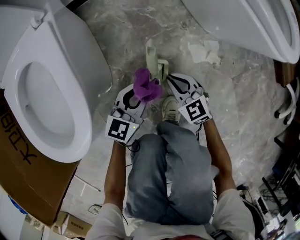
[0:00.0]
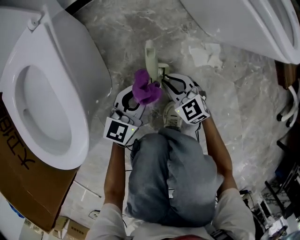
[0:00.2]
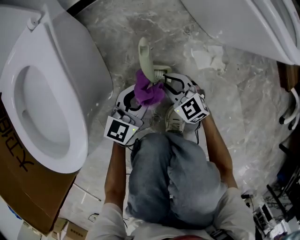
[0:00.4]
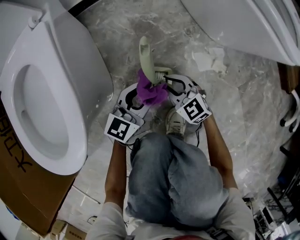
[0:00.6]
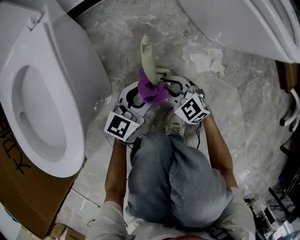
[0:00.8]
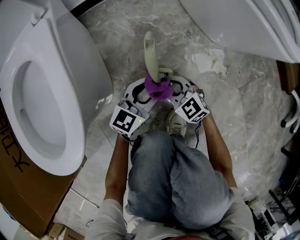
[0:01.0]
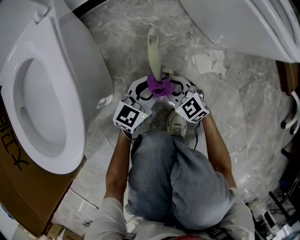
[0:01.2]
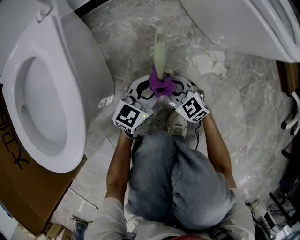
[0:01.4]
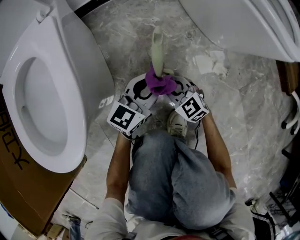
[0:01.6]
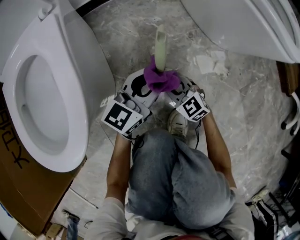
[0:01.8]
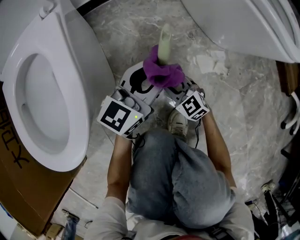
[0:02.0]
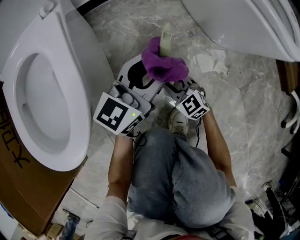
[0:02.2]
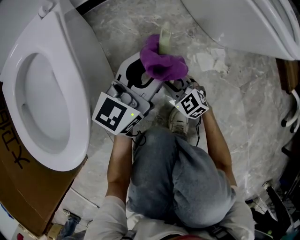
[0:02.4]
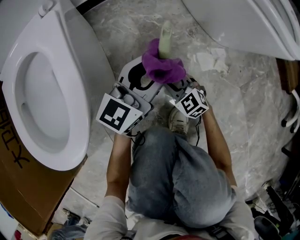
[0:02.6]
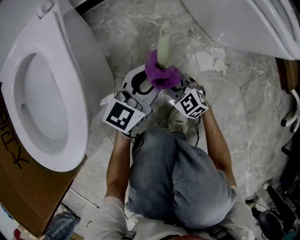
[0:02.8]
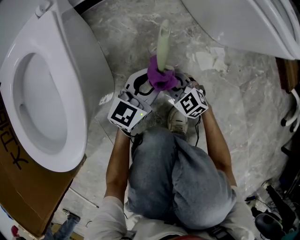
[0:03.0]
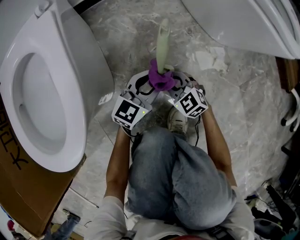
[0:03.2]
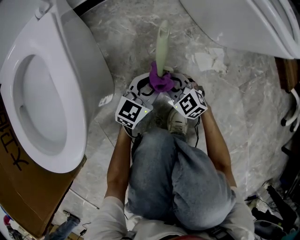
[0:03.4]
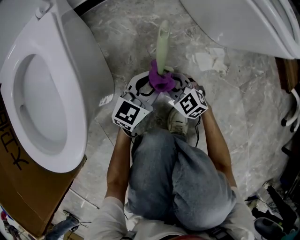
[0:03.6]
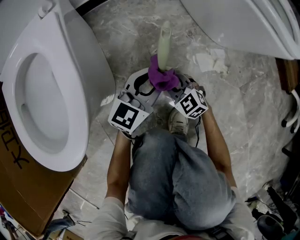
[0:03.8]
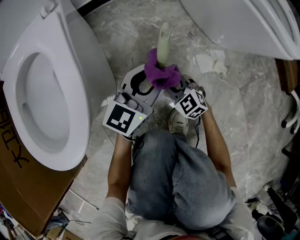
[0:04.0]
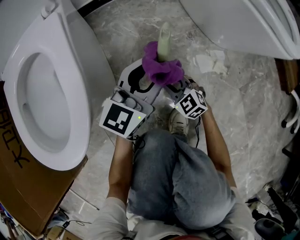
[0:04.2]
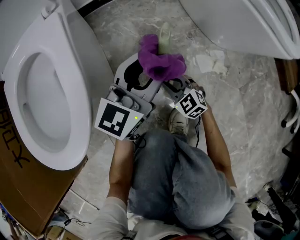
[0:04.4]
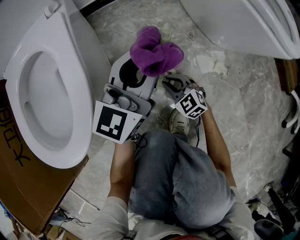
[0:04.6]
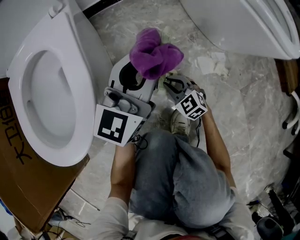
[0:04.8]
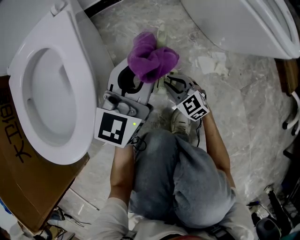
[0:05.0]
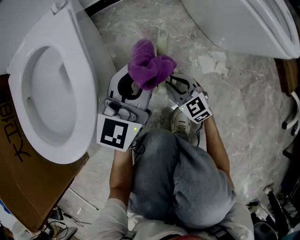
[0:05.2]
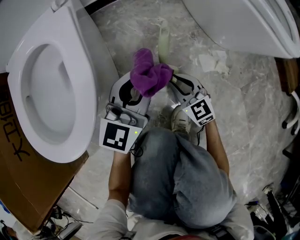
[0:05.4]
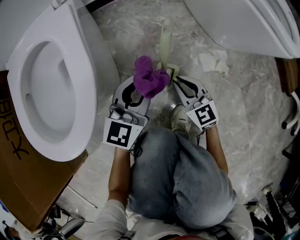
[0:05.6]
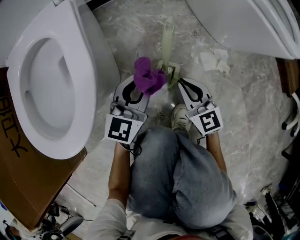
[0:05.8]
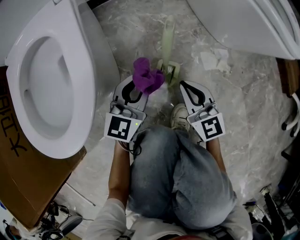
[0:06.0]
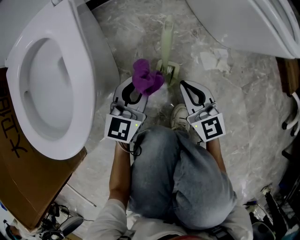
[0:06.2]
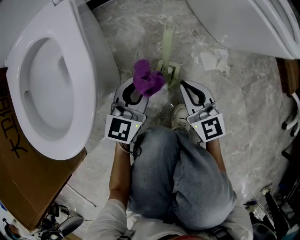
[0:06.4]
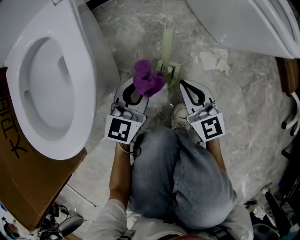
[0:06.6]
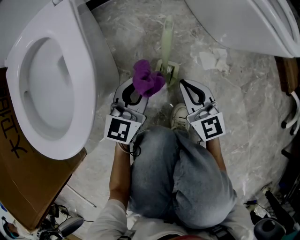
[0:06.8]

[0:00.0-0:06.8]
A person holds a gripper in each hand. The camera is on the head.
0:00.0 to 0:01.4: Both grippers travel together downward, roughly 5 cm.
0:01.4 to 0:02.8: The left gripper heads upward, covering some 10 cm.
0:02.8 to 0:04.0: The left gripper goes downward and returns, approximately 10 cm each way.
0:04.0 to 0:05.4: The left gripper travels to the left by about 5 cm; the right gripper goes roughly 5 cm upward.
0:05.4 to 0:06.8: The left gripper shifts approximately 5 cm downward. Meanwhile the right gripper is displaced upward by approximately 10 cm.

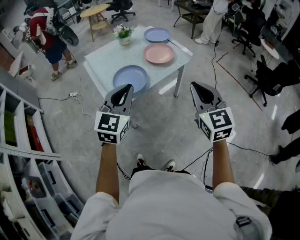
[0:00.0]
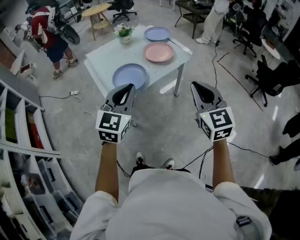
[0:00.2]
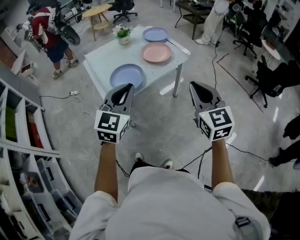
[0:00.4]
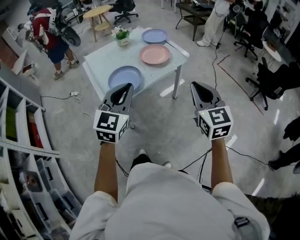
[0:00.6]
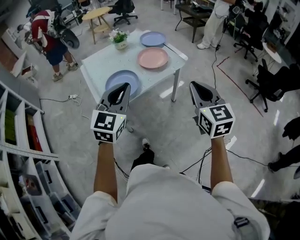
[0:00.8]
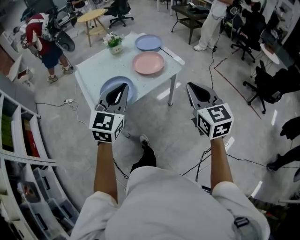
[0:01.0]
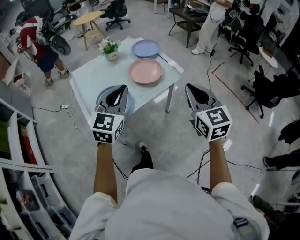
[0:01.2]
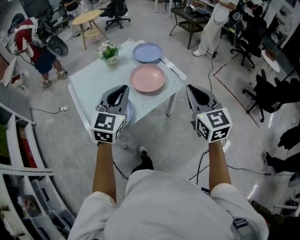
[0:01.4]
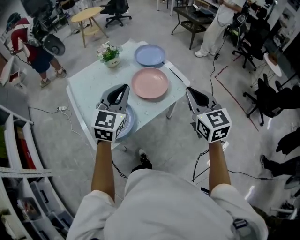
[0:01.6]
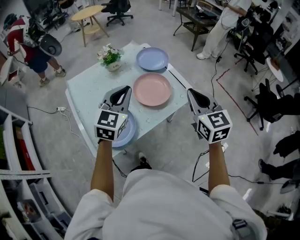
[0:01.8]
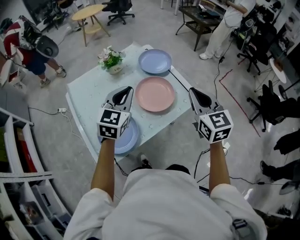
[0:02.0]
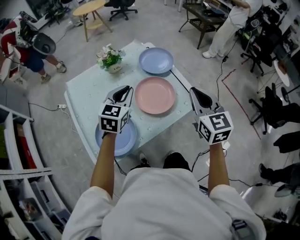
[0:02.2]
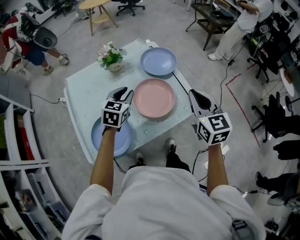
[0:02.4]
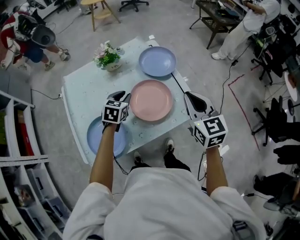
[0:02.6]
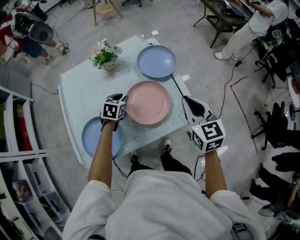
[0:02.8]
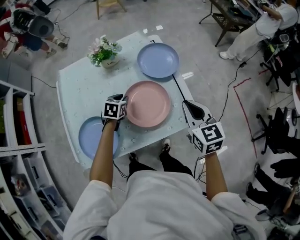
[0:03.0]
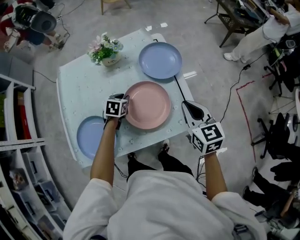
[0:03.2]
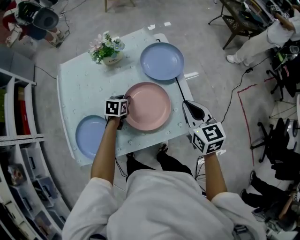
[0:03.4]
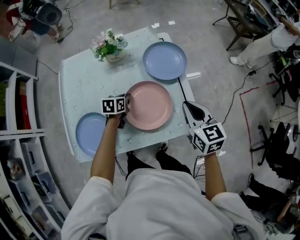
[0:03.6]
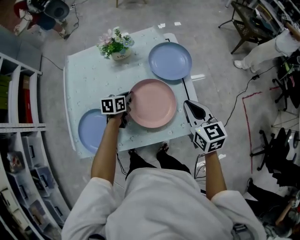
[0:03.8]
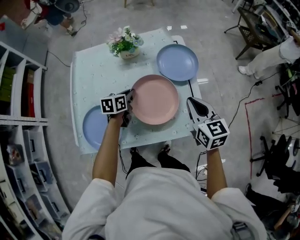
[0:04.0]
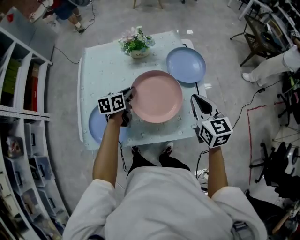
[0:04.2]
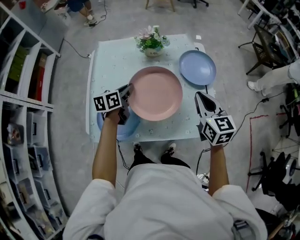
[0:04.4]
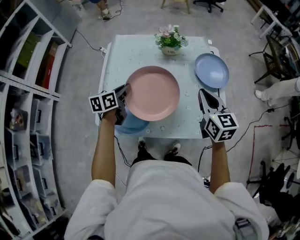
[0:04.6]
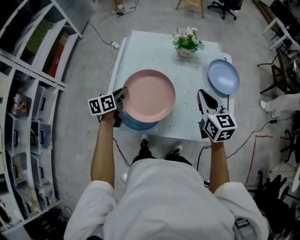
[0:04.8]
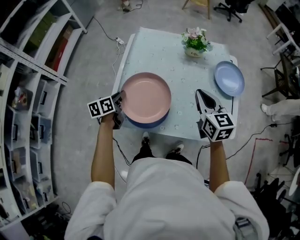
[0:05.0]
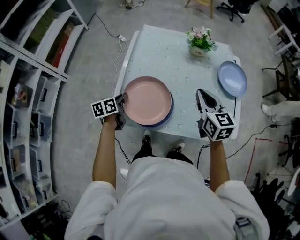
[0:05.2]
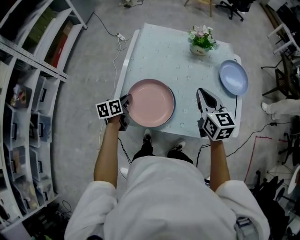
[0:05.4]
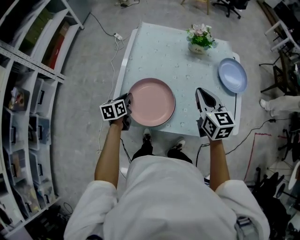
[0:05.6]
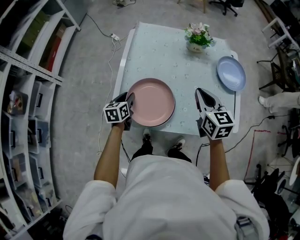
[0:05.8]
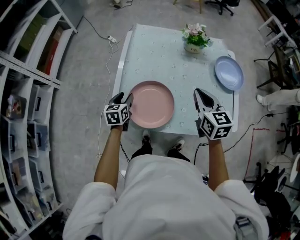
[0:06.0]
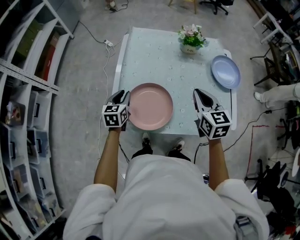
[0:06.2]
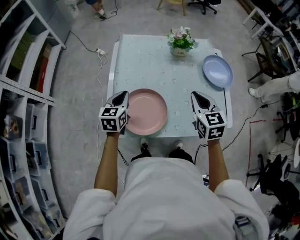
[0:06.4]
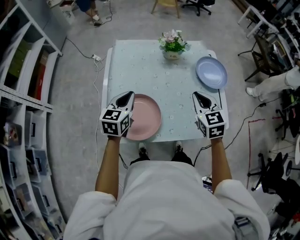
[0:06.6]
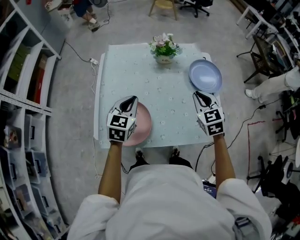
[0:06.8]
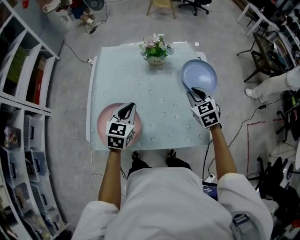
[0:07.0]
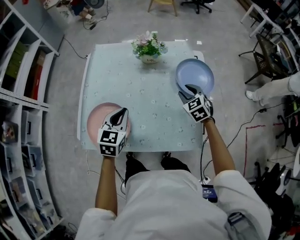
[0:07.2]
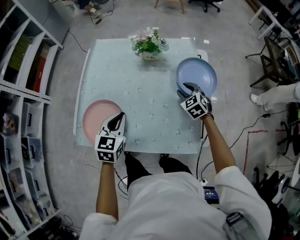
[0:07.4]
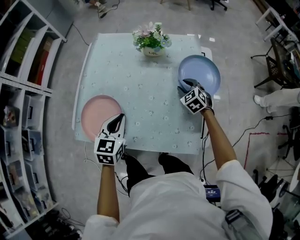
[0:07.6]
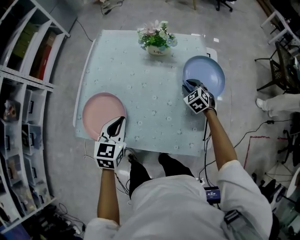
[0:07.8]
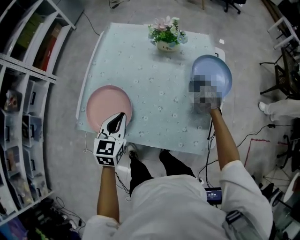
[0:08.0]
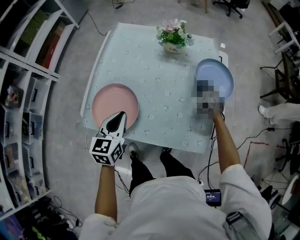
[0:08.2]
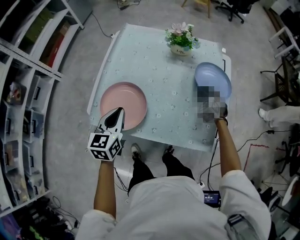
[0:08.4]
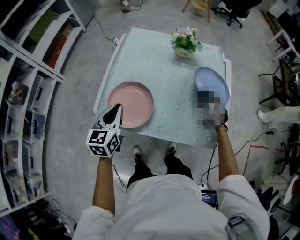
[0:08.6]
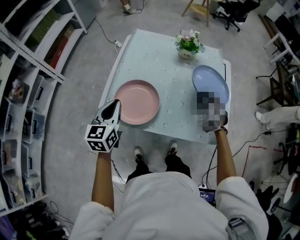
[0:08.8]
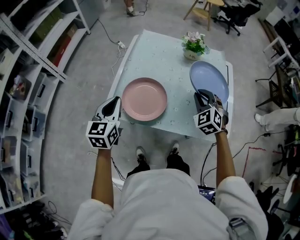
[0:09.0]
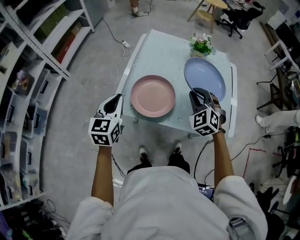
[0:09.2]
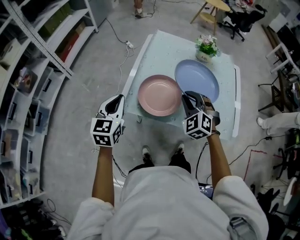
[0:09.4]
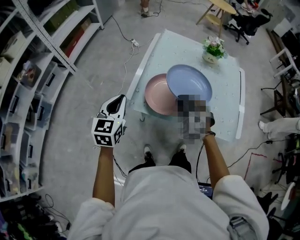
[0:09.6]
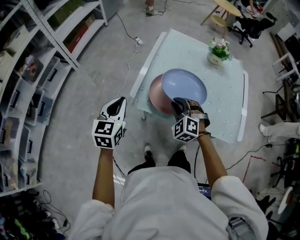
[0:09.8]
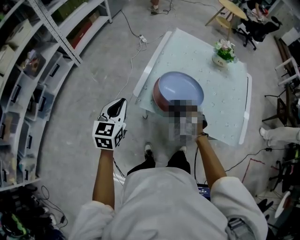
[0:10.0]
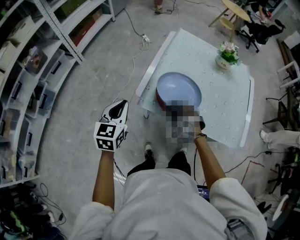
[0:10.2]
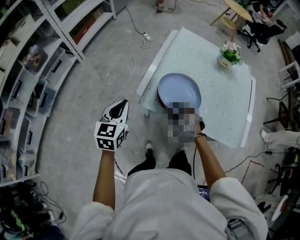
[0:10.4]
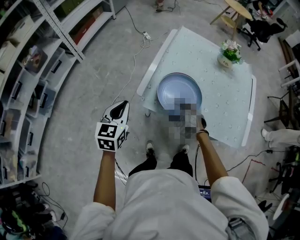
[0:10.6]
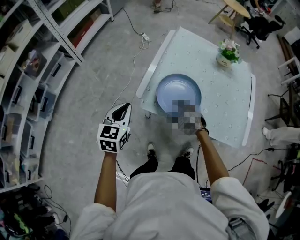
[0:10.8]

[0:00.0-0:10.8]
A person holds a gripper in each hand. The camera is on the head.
0:00.0 to 0:01.6: The grippers both shift forward by some 30 cm.
0:01.6 to 0:03.0: The left gripper goes roughly 40 cm downward and forward, tilts its fingers approximately 40 degrees downward, and opens its fingers. Meanwhile the right gripper goes some 30 cm forward and downward, and changes its angle by roughly 20 degrees.
0:03.0 to 0:04.6: The right gripper travels to the left by about 15 cm, while the left gripper heads to the left, upward and backward, covering approximately 25 cm, and turns by some 50 degrees.
0:04.6 to 0:06.2: The grippers both shift to the left by roughly 15 cm. The left gripper rotates roughly 30 degrees, and opens.
0:06.2 to 0:07.8: The right gripper shifts roughly 35 cm to the right, downward and forward, changes its angle by roughly 40 degrees, and opens its fingers. Meanwhile the left gripper moves to the right, about 25 cm, and closes up.
0:07.8 to 0:09.2: The right gripper goes roughly 40 cm to the left, upward and backward, and swivels approximately 30 degrees, while the left gripper travels to the left by about 25 cm.
0:09.2 to 0:10.8: The left gripper goes some 10 cm to the left and downward, while the right gripper goes about 25 cm to the left and downward, swivels about 40 degrees, and opens its fingers.

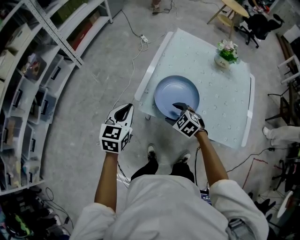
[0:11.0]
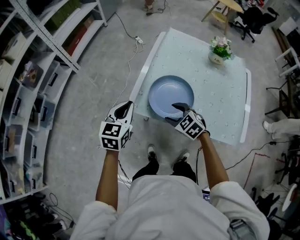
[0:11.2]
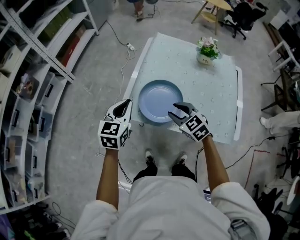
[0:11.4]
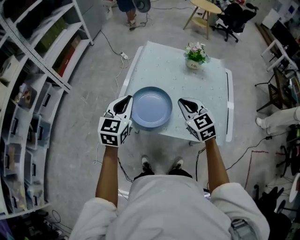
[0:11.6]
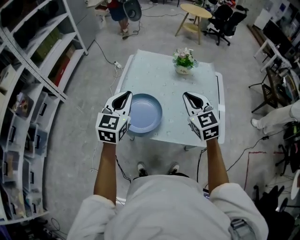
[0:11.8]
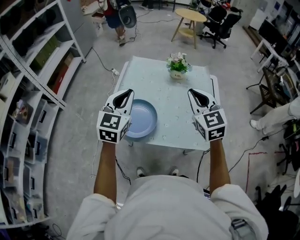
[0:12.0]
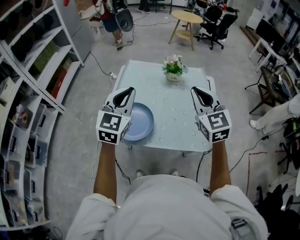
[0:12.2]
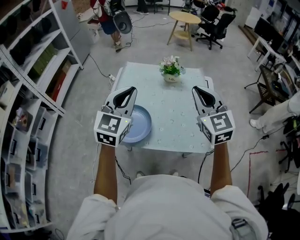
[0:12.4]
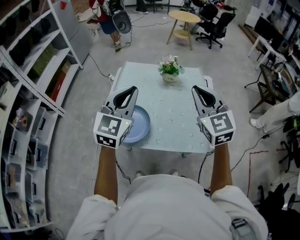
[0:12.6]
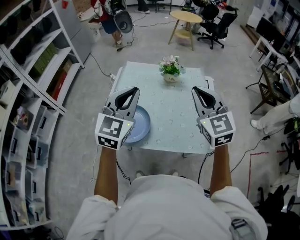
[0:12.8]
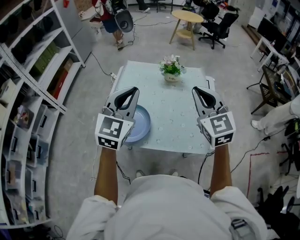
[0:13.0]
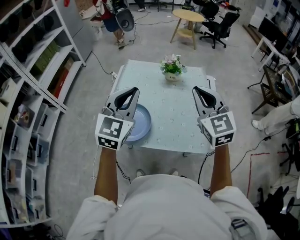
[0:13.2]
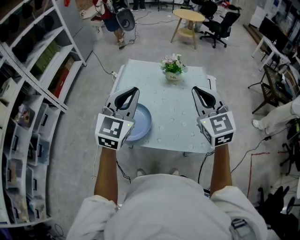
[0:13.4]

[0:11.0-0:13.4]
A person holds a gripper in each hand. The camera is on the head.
0:11.0 to 0:12.2: The left gripper moves approximately 35 cm, and swivels some 30 degrees, while the right gripper moves upward, some 35 cm, tips its fingers upward by approximately 40 degrees, and closes.
0:12.2 to 0:13.4: The left gripper ends up approximately 5 cm from where it was.

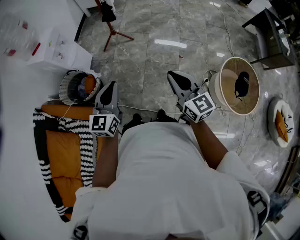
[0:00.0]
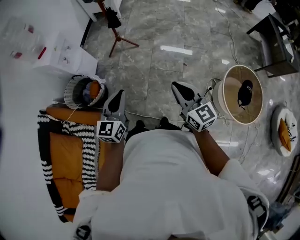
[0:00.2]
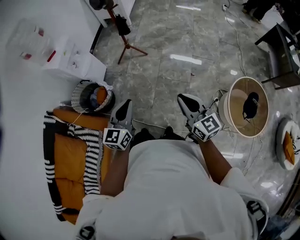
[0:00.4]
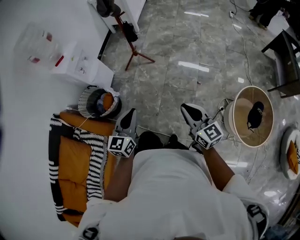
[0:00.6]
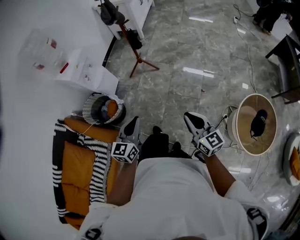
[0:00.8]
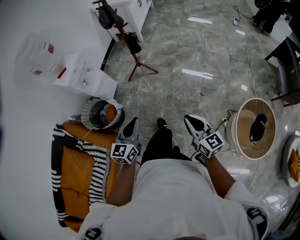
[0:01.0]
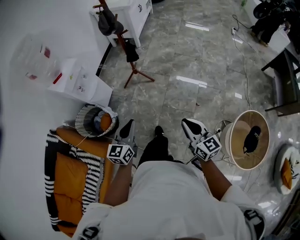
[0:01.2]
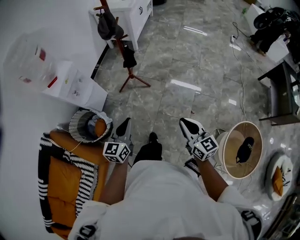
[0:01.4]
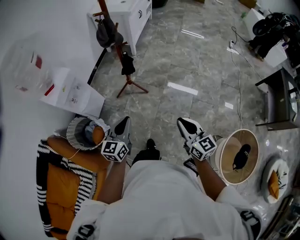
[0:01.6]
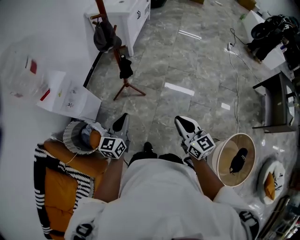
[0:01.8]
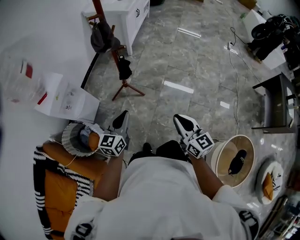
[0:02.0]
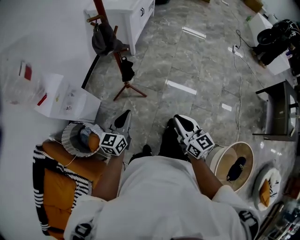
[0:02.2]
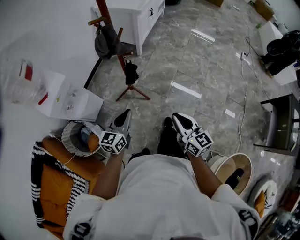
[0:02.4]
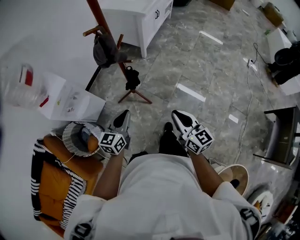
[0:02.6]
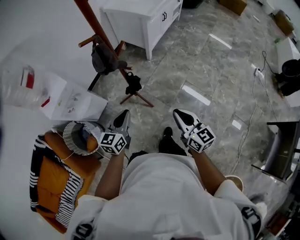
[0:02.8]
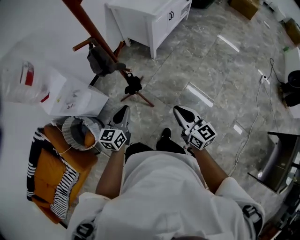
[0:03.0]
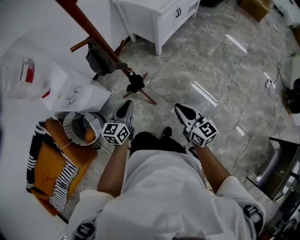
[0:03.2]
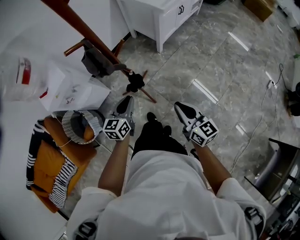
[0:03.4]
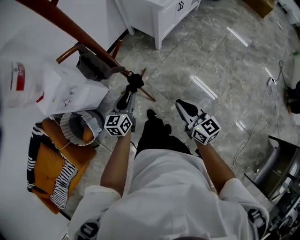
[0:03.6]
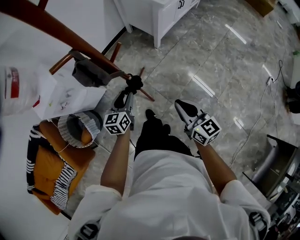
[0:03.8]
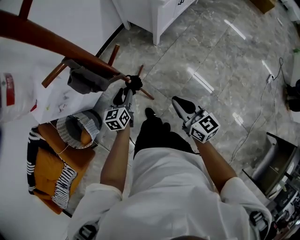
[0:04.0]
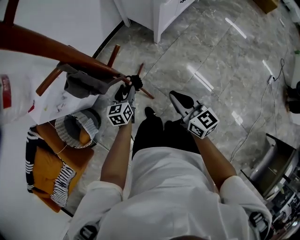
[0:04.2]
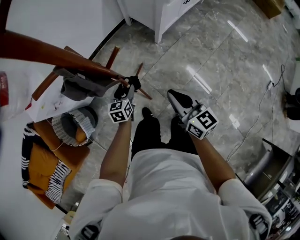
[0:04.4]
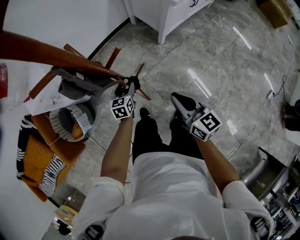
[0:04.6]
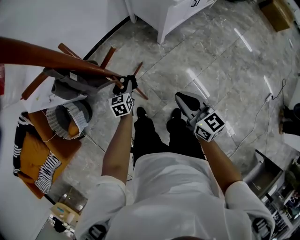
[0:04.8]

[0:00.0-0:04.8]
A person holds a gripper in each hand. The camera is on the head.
0:00.0 to 0:01.6: The grippers both shift forward by some 30 cm.
0:01.6 to 0:03.2: Both grippers travel together forward, roughly 40 cm. The left gripper turns by approximately 20 degrees, while the right gripper changes its angle by approximately 30 degrees.
0:03.2 to 0:04.8: The right gripper travels forward by roughly 20 cm. The left gripper shifts roughly 30 cm downward and forward, turns by approximately 30 degrees, and opens.
